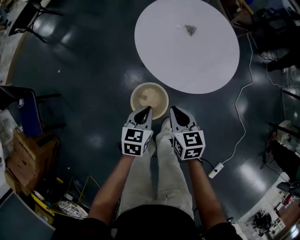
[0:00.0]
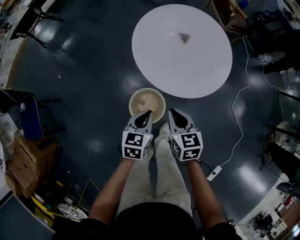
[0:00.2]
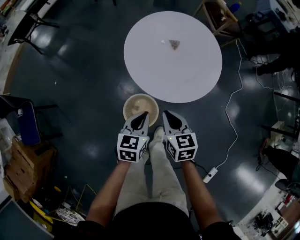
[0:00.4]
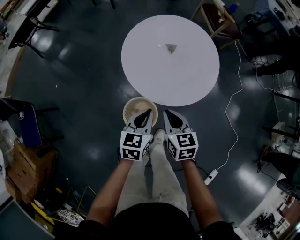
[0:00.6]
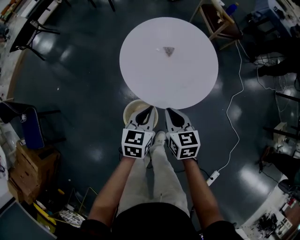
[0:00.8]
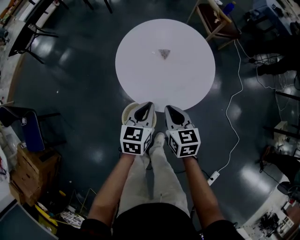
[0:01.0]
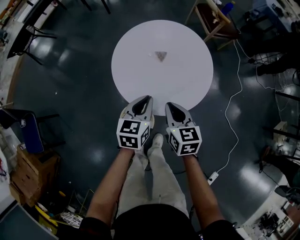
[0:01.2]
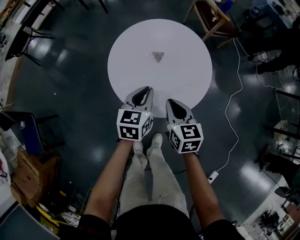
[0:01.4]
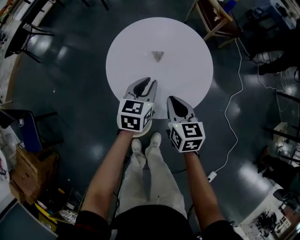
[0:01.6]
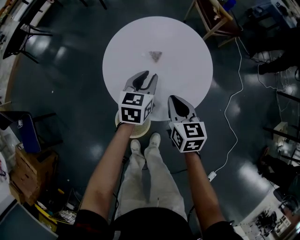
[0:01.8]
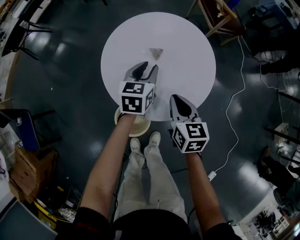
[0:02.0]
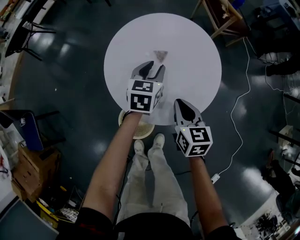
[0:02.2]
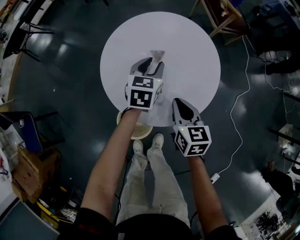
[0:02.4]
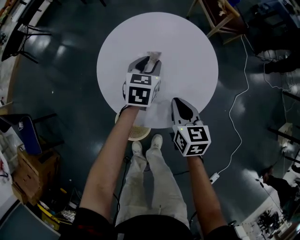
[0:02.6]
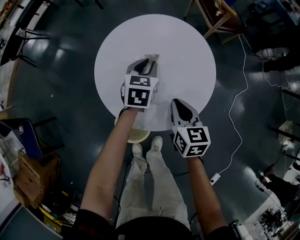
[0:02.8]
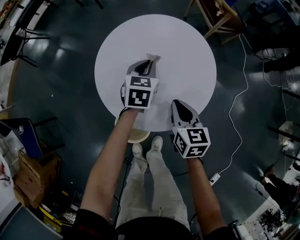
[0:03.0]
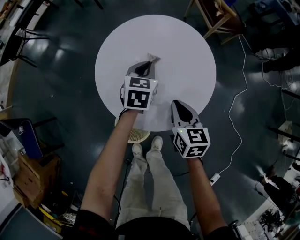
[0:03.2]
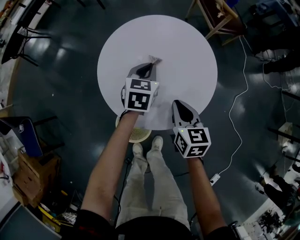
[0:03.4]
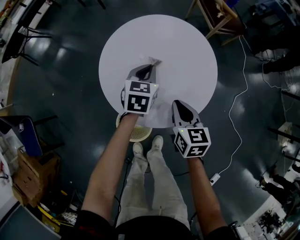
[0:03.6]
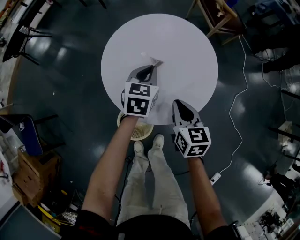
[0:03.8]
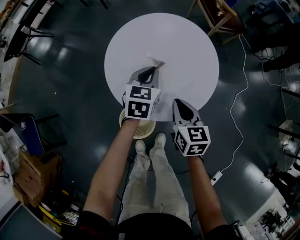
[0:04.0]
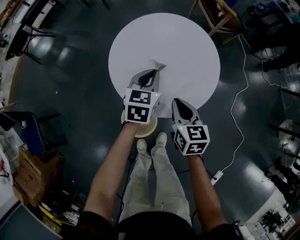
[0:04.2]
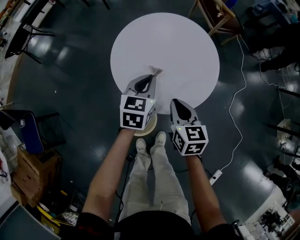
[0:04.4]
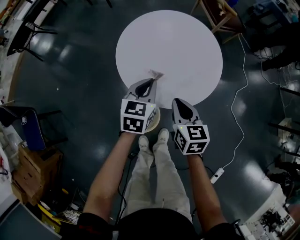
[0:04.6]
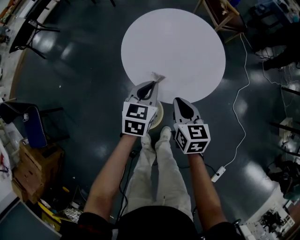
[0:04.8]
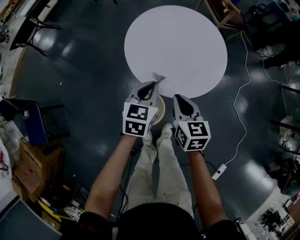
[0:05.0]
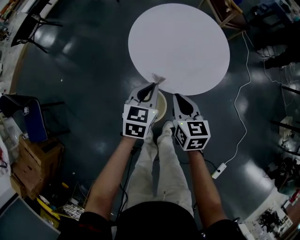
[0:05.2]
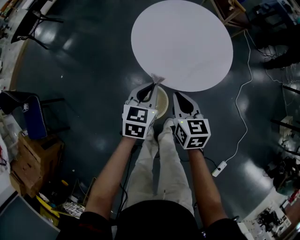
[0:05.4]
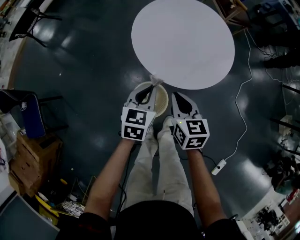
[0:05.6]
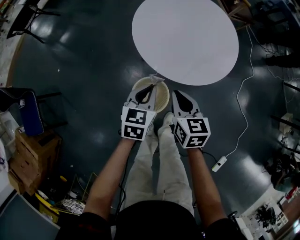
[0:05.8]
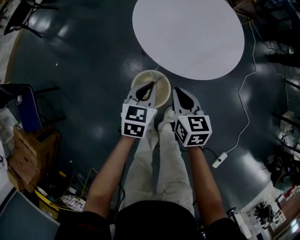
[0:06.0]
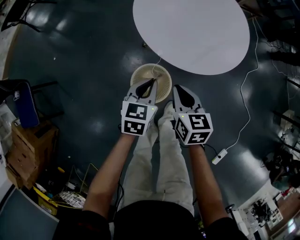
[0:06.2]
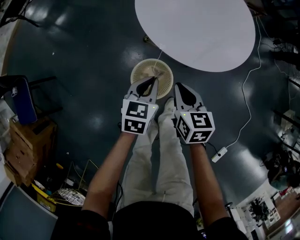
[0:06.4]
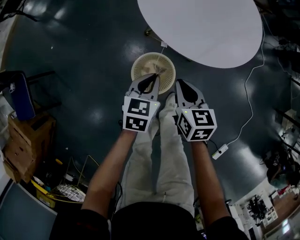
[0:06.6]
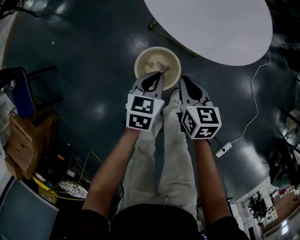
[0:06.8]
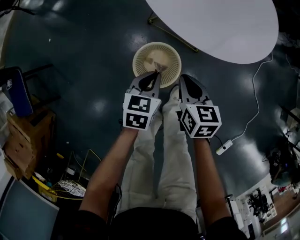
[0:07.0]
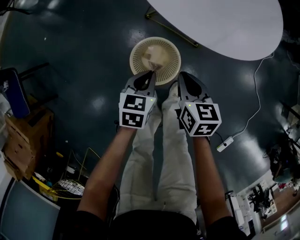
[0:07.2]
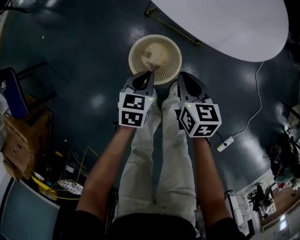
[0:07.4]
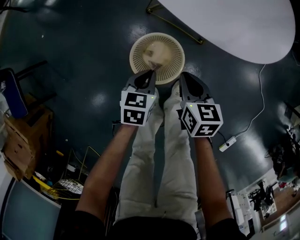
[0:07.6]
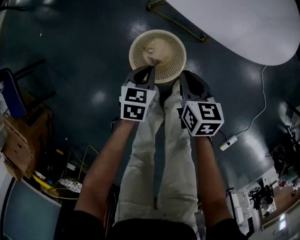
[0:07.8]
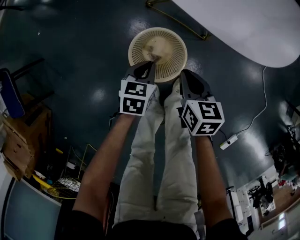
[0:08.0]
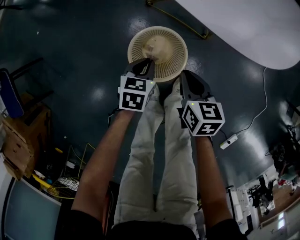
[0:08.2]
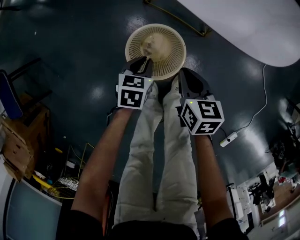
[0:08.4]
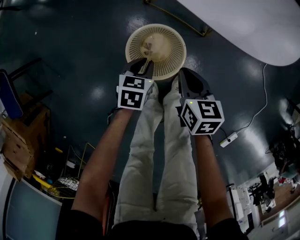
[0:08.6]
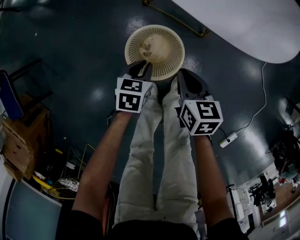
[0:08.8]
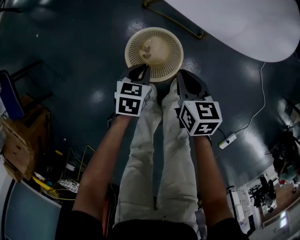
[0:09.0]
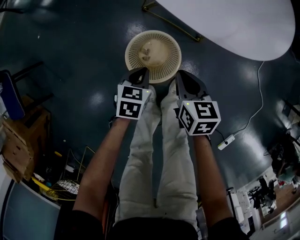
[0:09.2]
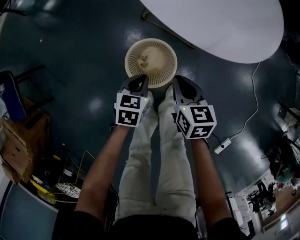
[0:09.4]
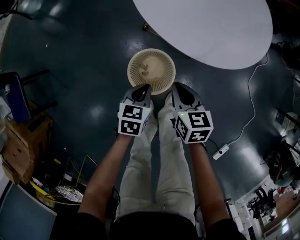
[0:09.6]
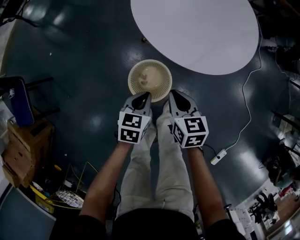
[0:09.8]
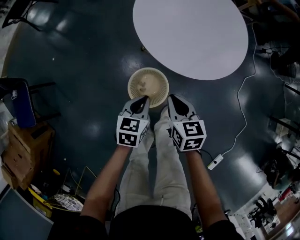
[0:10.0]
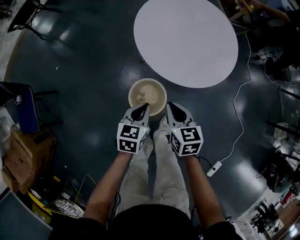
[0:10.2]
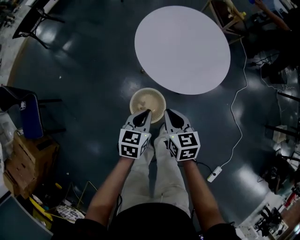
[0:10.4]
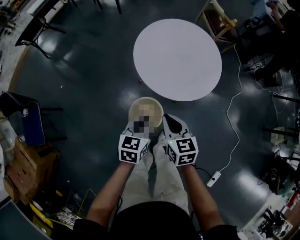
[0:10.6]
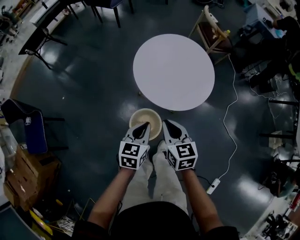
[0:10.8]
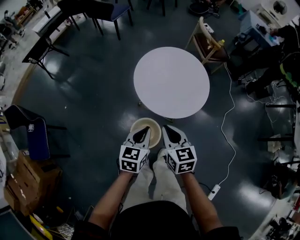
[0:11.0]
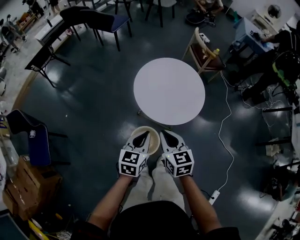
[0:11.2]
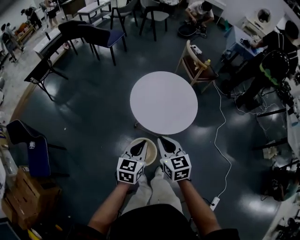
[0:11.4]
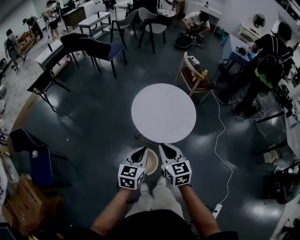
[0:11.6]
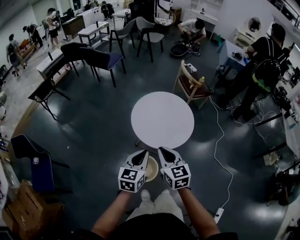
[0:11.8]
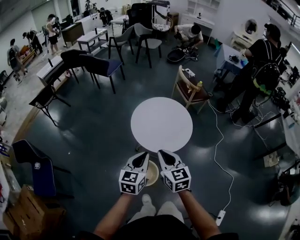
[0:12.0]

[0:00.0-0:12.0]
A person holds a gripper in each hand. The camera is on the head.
0:00.0 to 0:01.6: Both grippers travel together forward and to the right, roughly 25 cm.
0:01.6 to 0:03.0: The left gripper goes some 15 cm forward and downward, while the right gripper moves downward, about 5 cm.
0:03.0 to 0:04.4: The right gripper shifts about 10 cm backward and to the left, while the left gripper heads backward and upward, covering approximately 15 cm.
0:04.4 to 0:06.0: The two grippers go approximately 20 cm backward, to the left and downward.
0:06.0 to 0:07.6: The grippers both shift downward by about 25 cm.
0:07.6 to 0:09.0: The left gripper shifts approximately 5 cm downward.
0:09.0 to 0:10.4: Both grippers move upward, about 35 cm. The left gripper swivels roughly 20 degrees.
0:10.4 to 0:12.0: Both grippers move upward, approximately 30 cm. The left gripper changes its angle by roughly 20 degrees, while the right gripper swivels about 20 degrees.

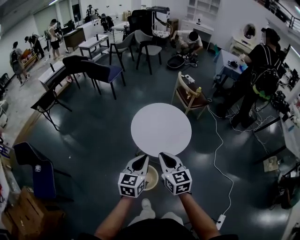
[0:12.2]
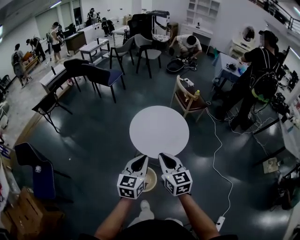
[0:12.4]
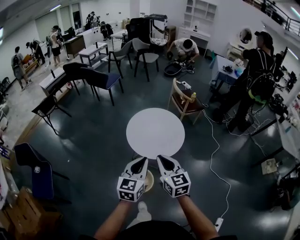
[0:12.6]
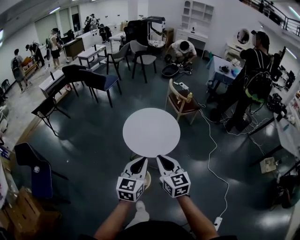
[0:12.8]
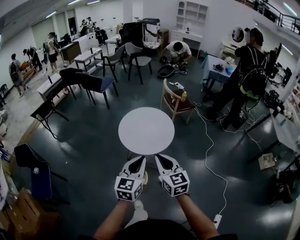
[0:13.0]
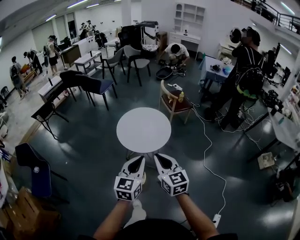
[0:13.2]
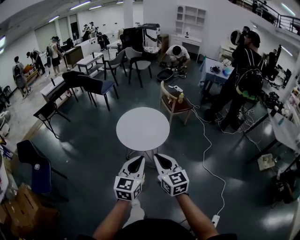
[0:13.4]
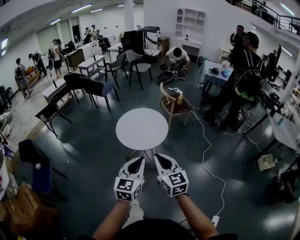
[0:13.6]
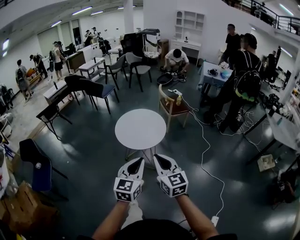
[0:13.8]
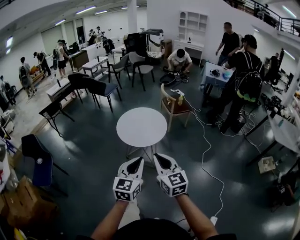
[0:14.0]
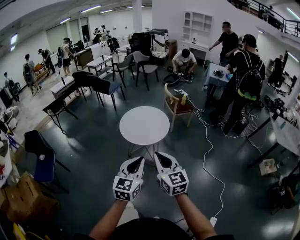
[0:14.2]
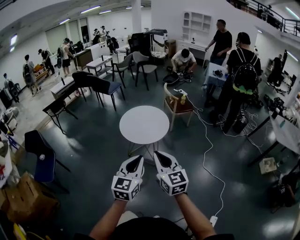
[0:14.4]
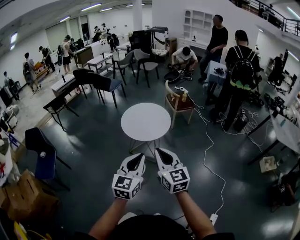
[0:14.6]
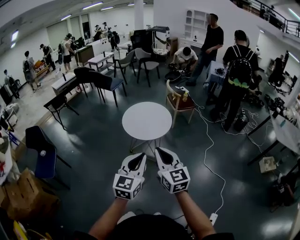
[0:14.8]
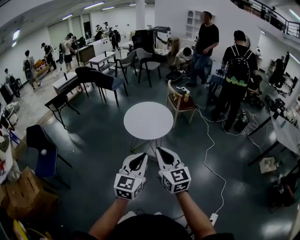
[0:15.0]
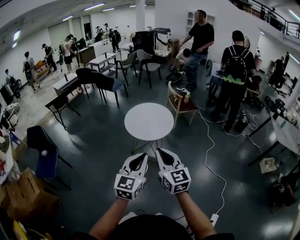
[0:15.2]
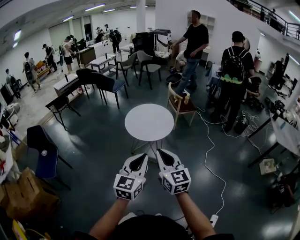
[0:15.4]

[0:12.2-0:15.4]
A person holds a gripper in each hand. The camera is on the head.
0:12.2 to 0:13.8: The grippers both shift backward and to the right by roughly 35 cm.
0:13.8 to 0:15.4: Both grippers travel together backward, roughly 10 cm.

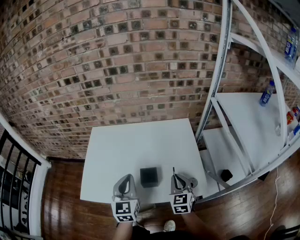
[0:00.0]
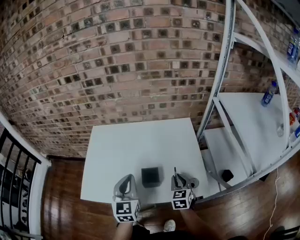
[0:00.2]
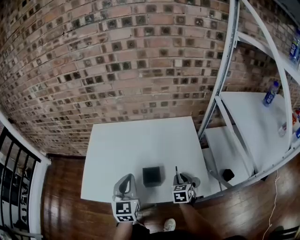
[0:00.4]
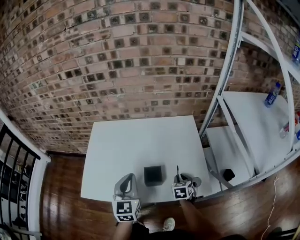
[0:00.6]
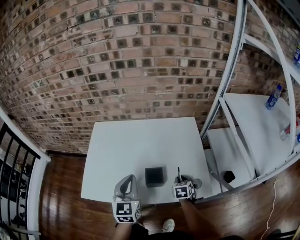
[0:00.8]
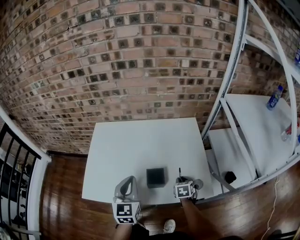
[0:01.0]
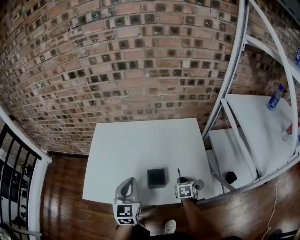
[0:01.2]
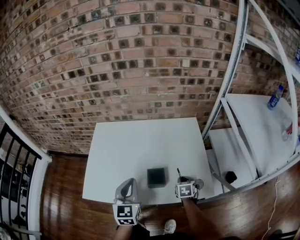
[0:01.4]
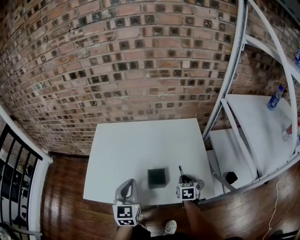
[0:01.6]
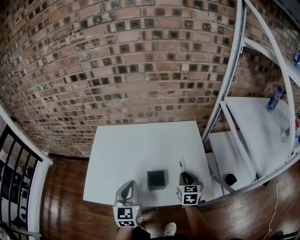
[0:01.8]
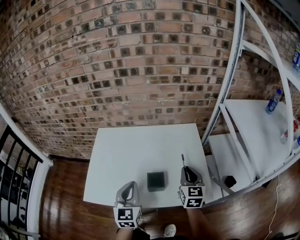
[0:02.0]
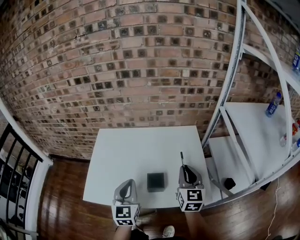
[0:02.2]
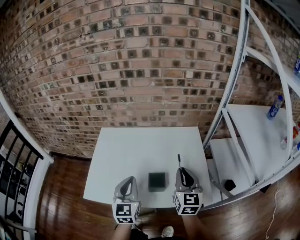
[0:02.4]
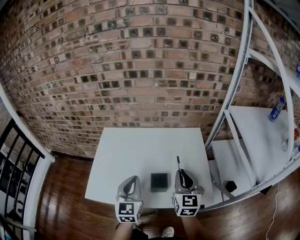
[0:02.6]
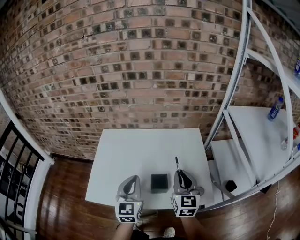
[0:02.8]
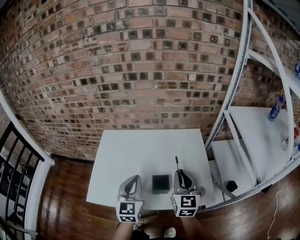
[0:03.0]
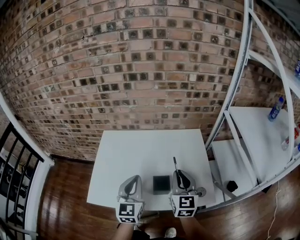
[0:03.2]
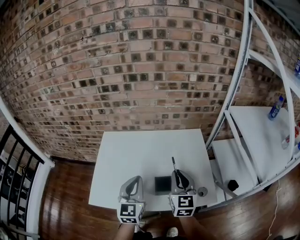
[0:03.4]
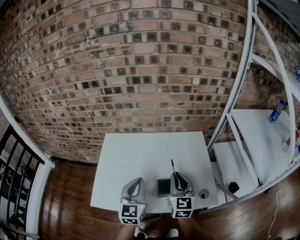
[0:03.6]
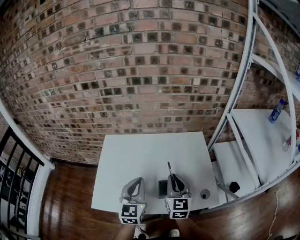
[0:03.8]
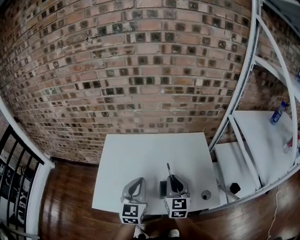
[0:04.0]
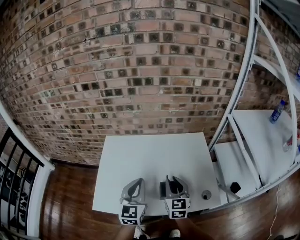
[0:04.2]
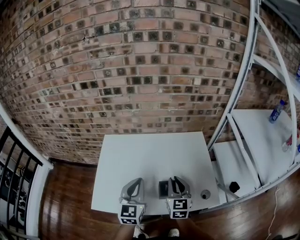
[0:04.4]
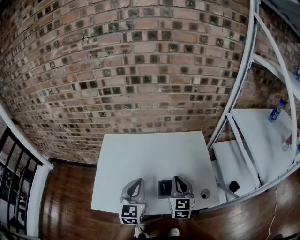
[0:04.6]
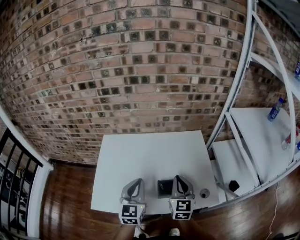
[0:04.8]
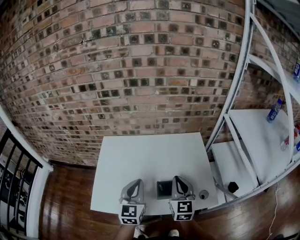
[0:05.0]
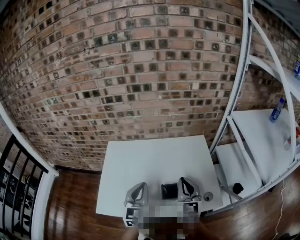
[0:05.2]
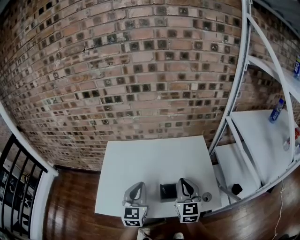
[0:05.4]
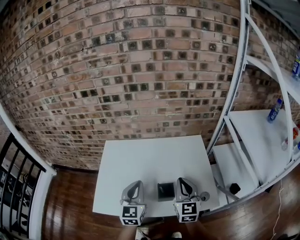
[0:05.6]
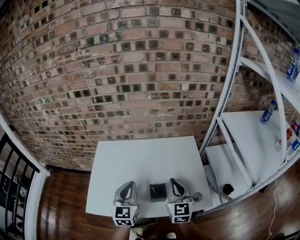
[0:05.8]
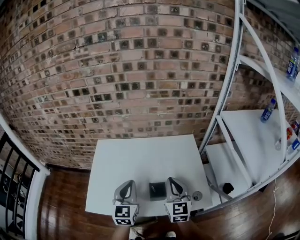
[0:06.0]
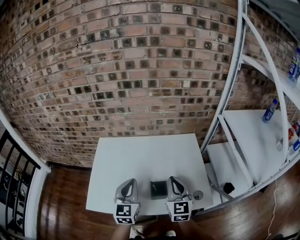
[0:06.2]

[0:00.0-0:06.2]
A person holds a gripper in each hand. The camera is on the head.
0:00.0 to 0:01.6: The right gripper heads downward, covering roughly 10 cm, and turns by approximately 30 degrees.
0:01.6 to 0:03.2: The right gripper goes approximately 25 cm upward, and angles its fingers upward, by about 40 degrees. The left gripper is displaced upward by approximately 5 cm.
0:03.2 to 0:04.6: The right gripper moves approximately 5 cm.
0:04.6 to 0:06.2: The right gripper shifts by roughly 5 cm.

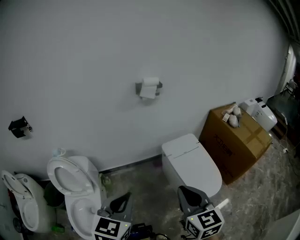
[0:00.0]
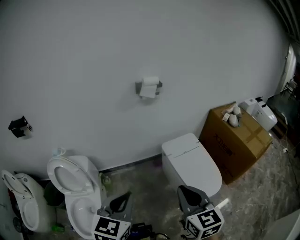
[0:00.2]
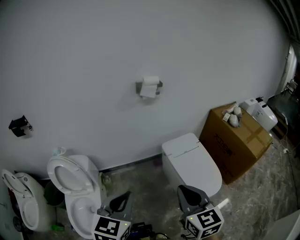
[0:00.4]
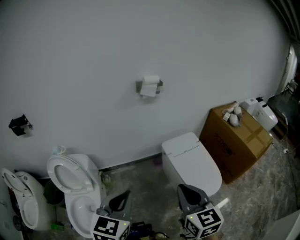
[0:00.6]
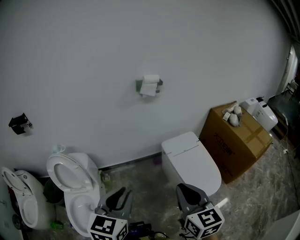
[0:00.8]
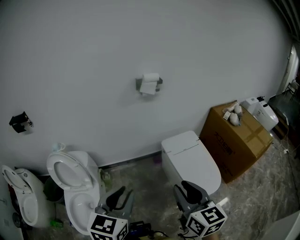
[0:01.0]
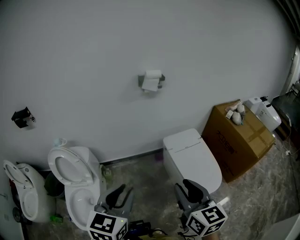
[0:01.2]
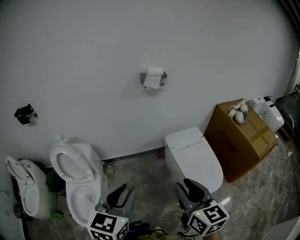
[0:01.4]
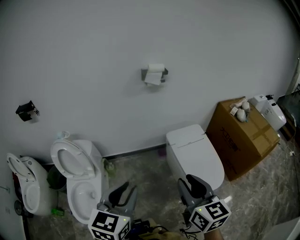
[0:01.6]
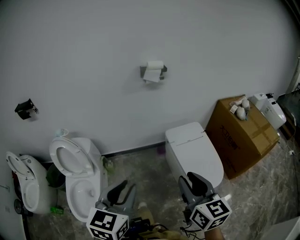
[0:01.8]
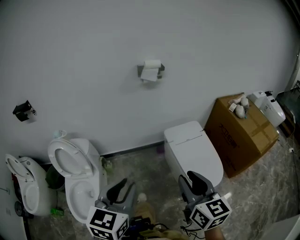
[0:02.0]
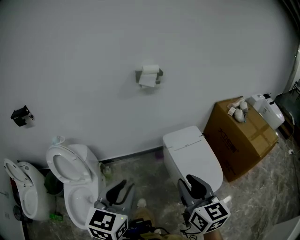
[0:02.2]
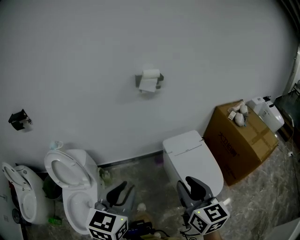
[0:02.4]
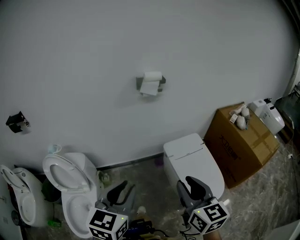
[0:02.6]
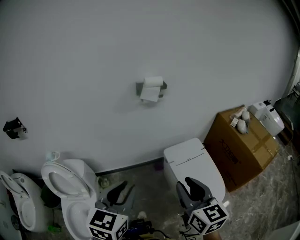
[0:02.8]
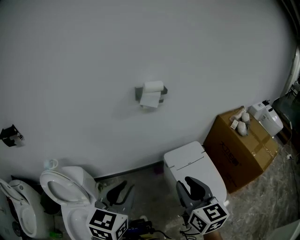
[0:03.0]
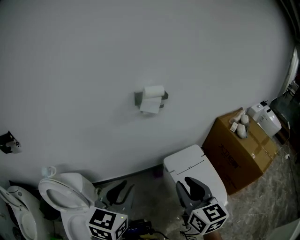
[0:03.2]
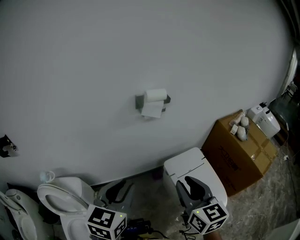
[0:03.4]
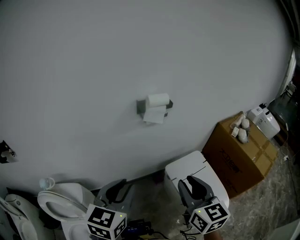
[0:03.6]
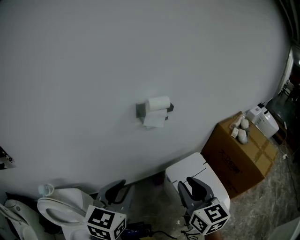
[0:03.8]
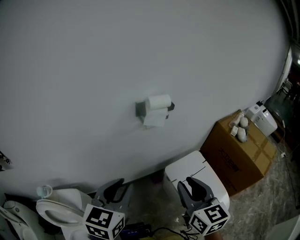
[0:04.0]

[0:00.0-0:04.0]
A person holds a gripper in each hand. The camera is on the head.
0:00.0 to 0:01.4: The right gripper opens up, while the left gripper opens.
0:01.4 to 0:02.6: The two grippers go approximately 10 cm forward.
0:02.6 to 0:04.0: Both grippers move forward, some 25 cm.
